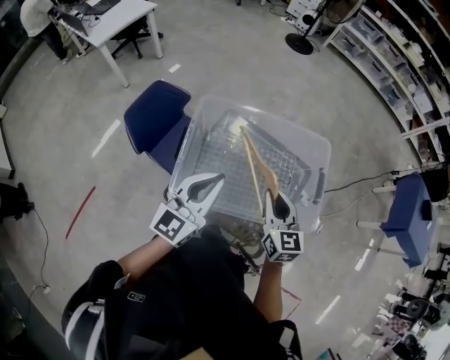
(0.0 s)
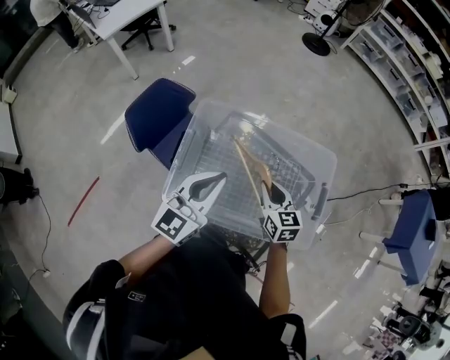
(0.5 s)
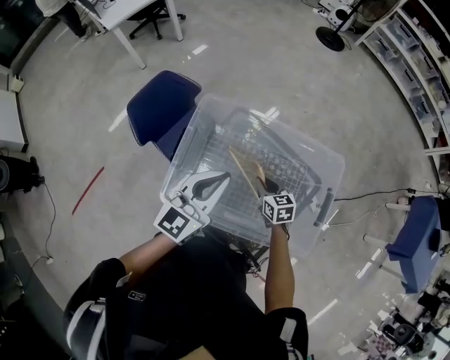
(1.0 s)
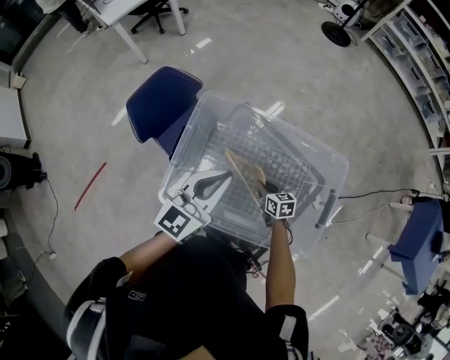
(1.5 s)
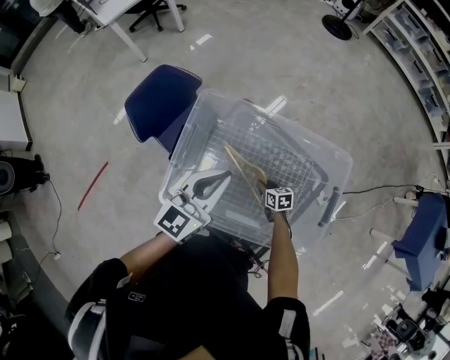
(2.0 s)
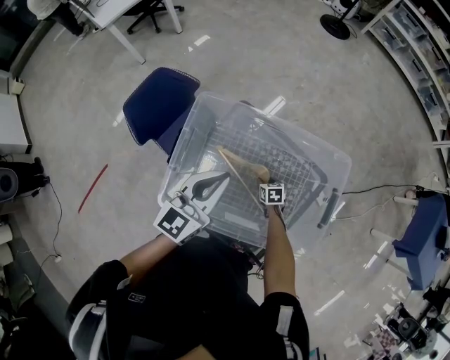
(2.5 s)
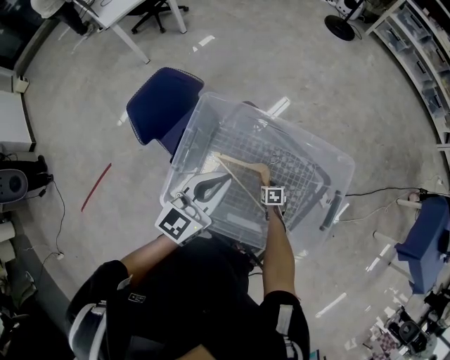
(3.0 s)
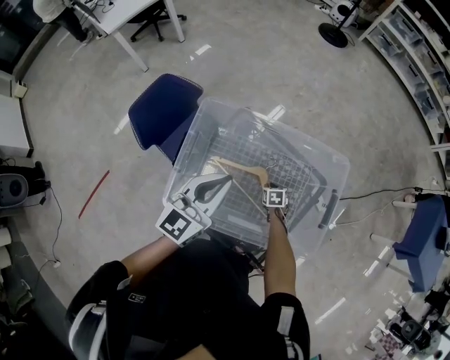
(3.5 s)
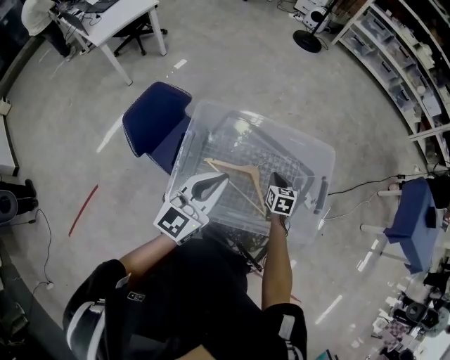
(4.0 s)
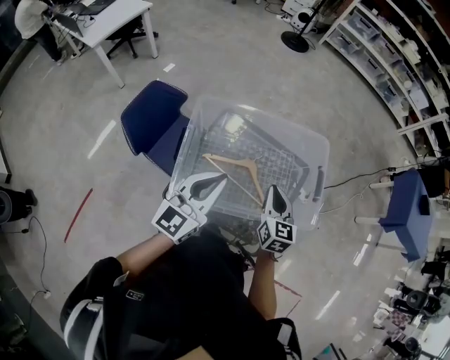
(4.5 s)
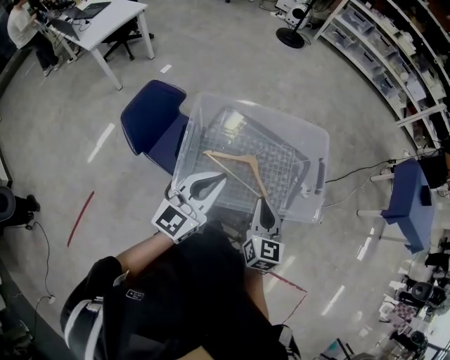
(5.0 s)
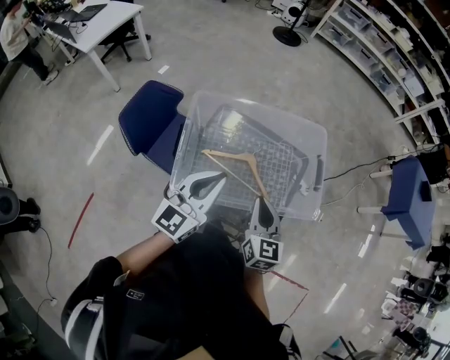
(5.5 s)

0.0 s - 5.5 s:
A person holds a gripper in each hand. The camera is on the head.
0.0 s - 2.0 s: The left gripper moves forward and downward, some 15 cm, while the right gripper shifts some 40 cm downward, and angles its fingers downward, by some 30 degrees.
2.0 s - 3.5 s: The right gripper changes its angle by roughly 20 degrees, and opens, then closes again.
3.5 s - 5.5 s: The left gripper heads backward and upward, covering about 15 cm, while the right gripper shifts some 50 cm upward and backward, and points its fingers approximately 50 degrees further upward.

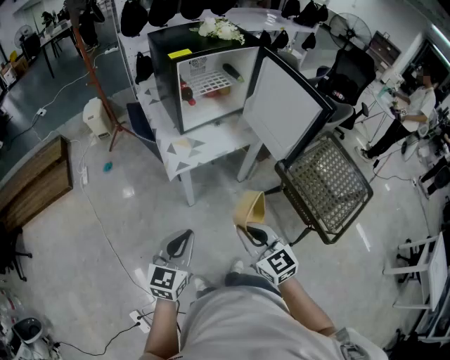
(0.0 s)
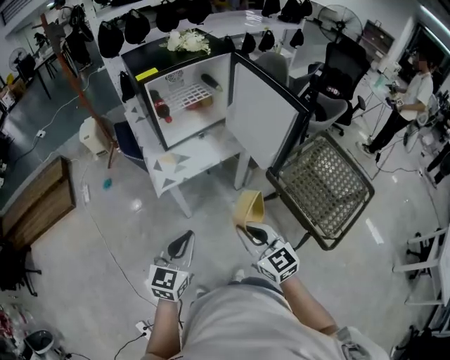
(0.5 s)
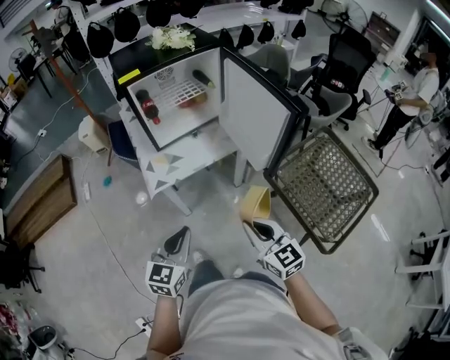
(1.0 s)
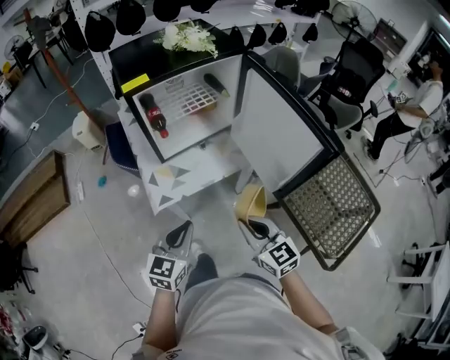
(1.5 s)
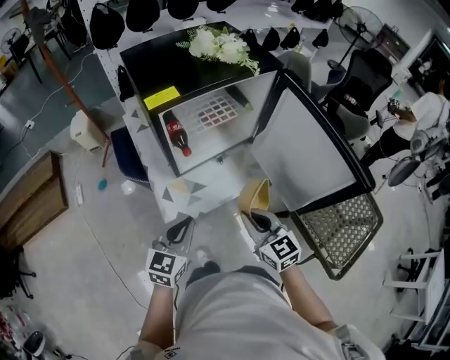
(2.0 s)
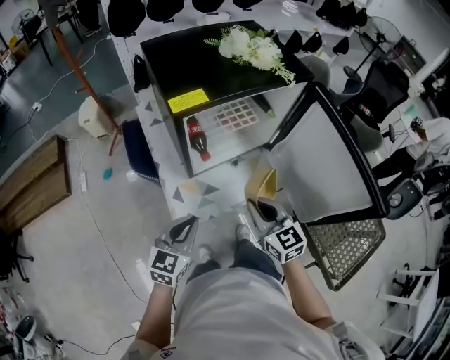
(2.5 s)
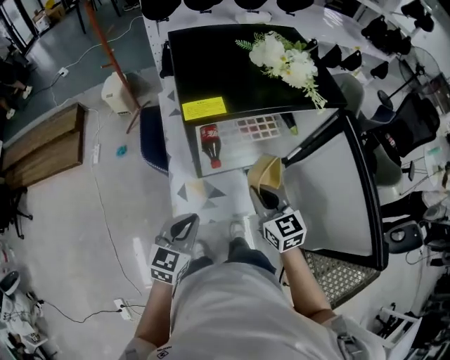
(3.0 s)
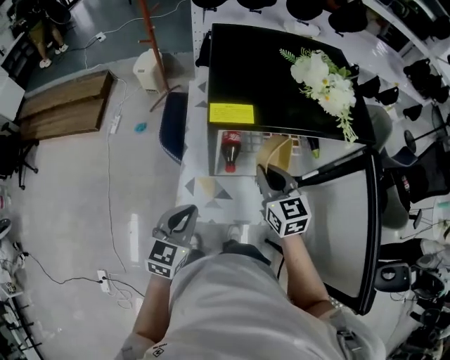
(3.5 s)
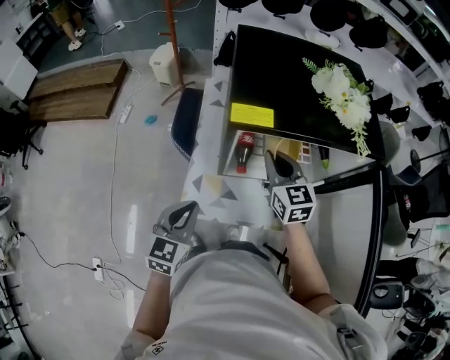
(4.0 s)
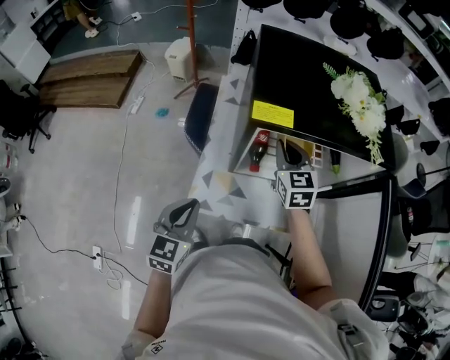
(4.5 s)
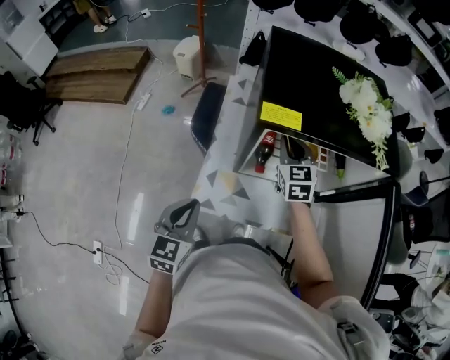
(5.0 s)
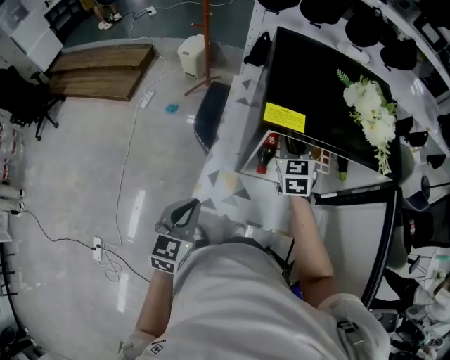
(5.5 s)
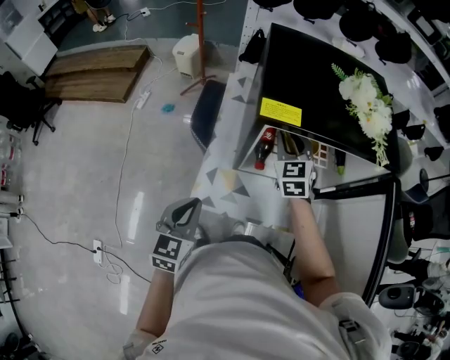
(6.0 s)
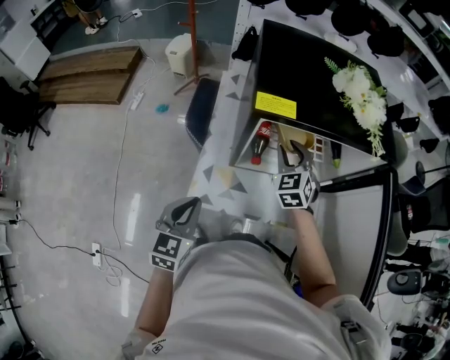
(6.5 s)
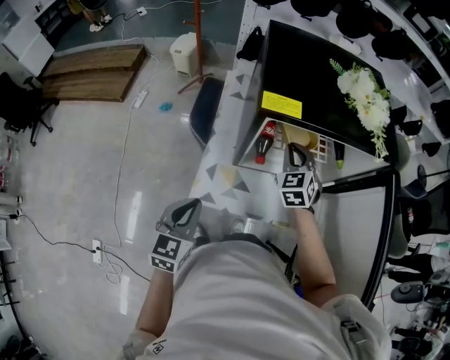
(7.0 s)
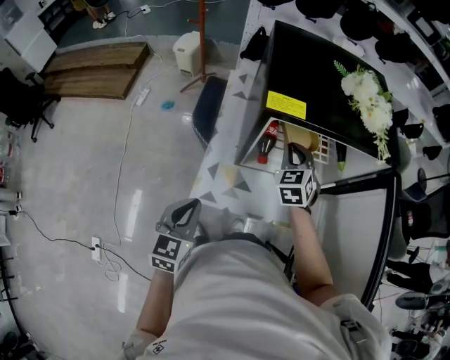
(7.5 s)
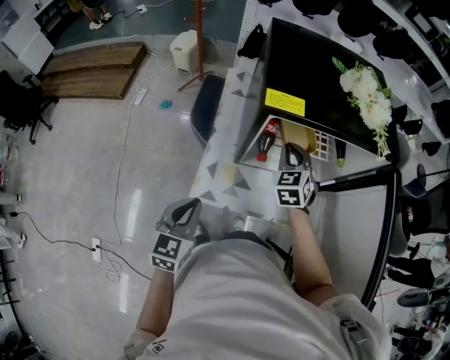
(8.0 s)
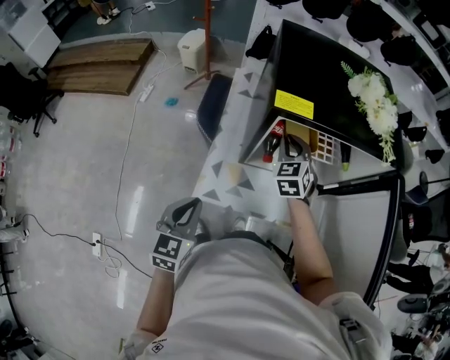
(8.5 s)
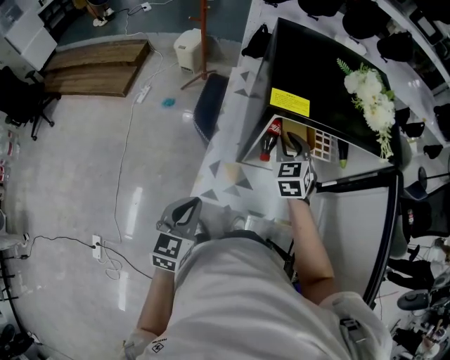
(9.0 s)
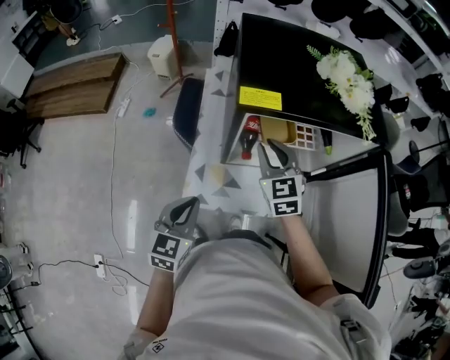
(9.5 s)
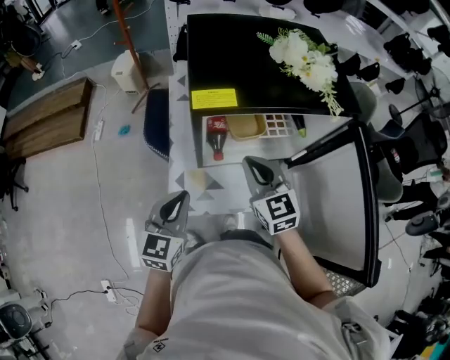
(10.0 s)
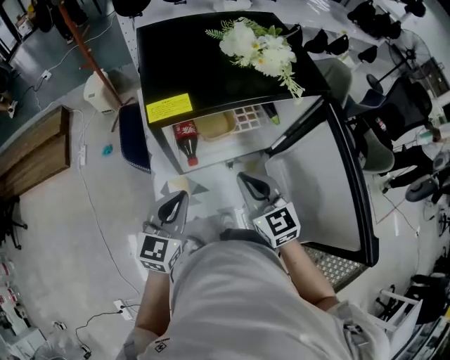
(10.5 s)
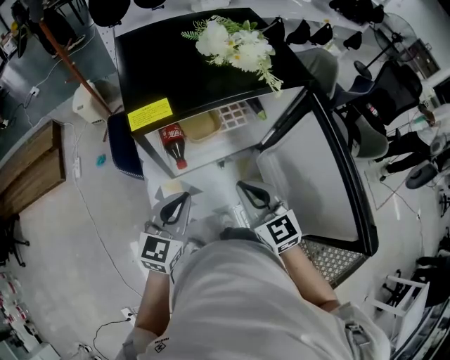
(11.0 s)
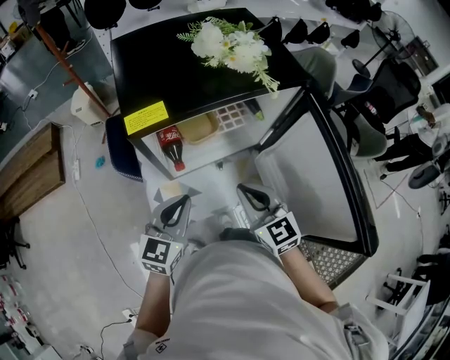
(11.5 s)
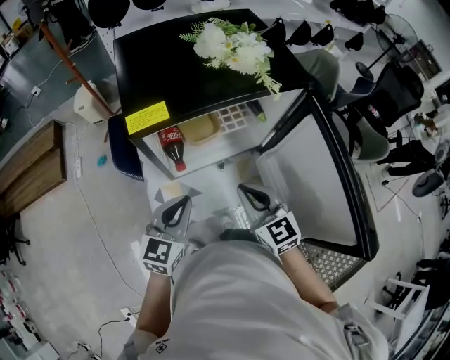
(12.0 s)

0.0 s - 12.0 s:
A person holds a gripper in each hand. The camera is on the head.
0.0 s - 2.0 s: The two grippers go about 30 cm forward.
2.0 s - 4.0 s: The left gripper heads forward, covering some 10 cm, and swivels approximately 30 degrees, while the right gripper goes approximately 30 cm forward.
4.0 s - 6.0 s: The right gripper heads forward, covering about 5 cm, and rotates roughly 20 degrees.
6.0 s - 8.0 s: The right gripper changes place by approximately 5 cm.
8.0 s - 10.0 s: The left gripper goes approximately 5 cm forward. Meanwhile the right gripper shifts some 10 cm backward and upward, and rotates roughly 30 degrees.
10.0 s - 12.0 s: The left gripper is displaced to the right by approximately 10 cm; the right gripper travels to the right and backward by some 10 cm.

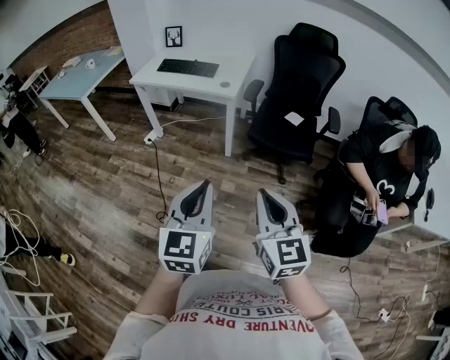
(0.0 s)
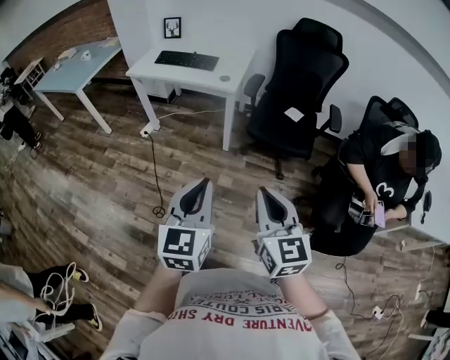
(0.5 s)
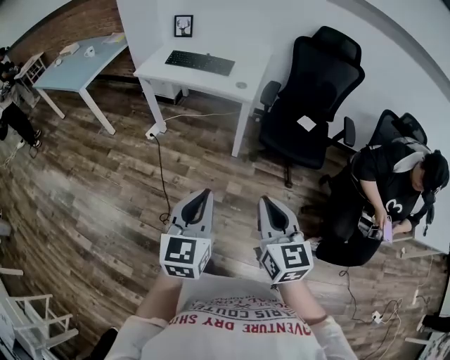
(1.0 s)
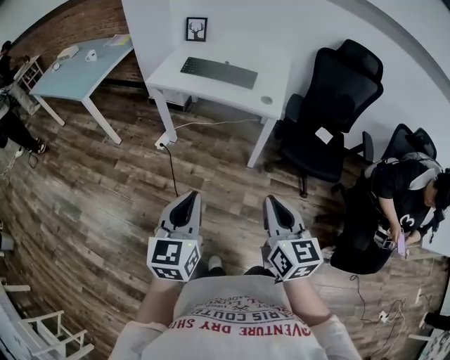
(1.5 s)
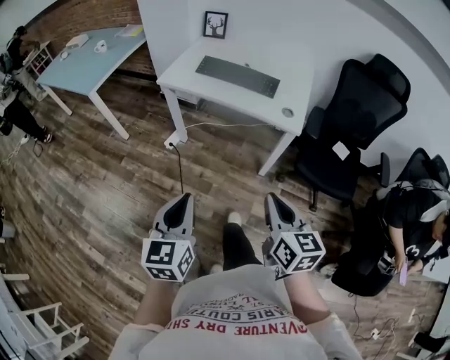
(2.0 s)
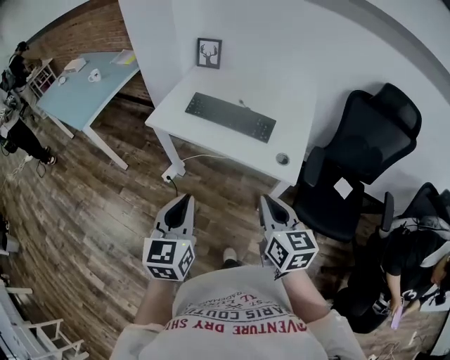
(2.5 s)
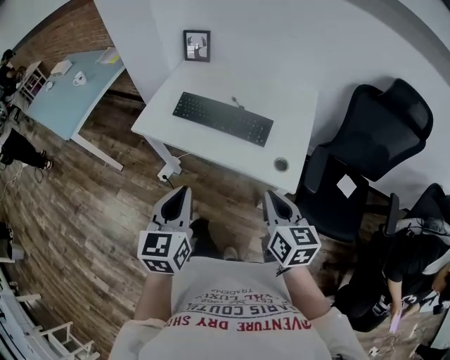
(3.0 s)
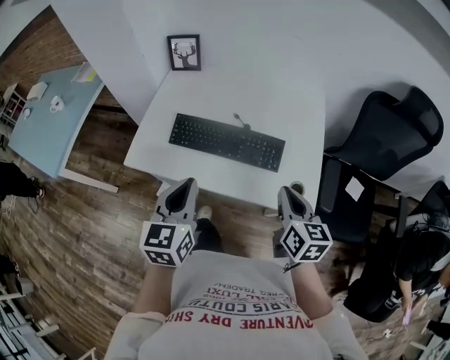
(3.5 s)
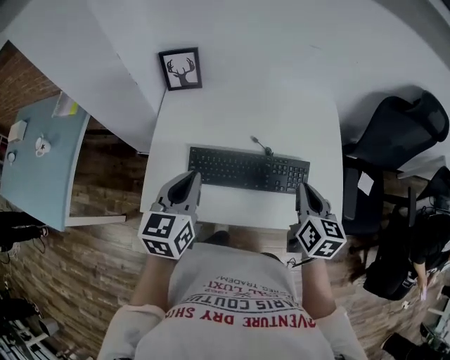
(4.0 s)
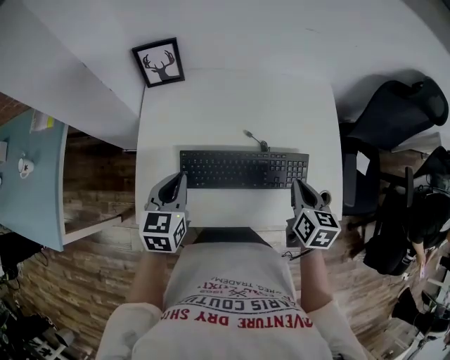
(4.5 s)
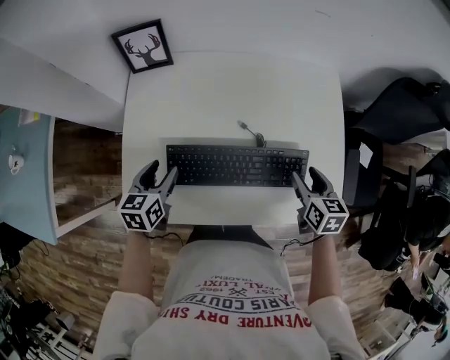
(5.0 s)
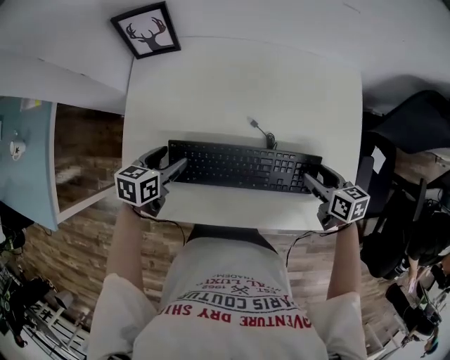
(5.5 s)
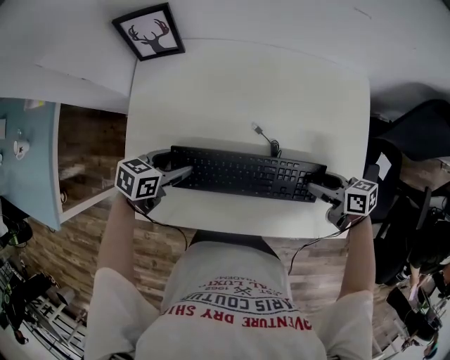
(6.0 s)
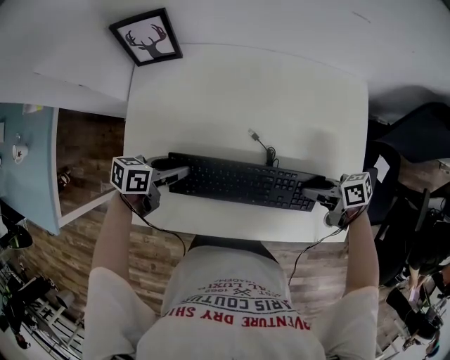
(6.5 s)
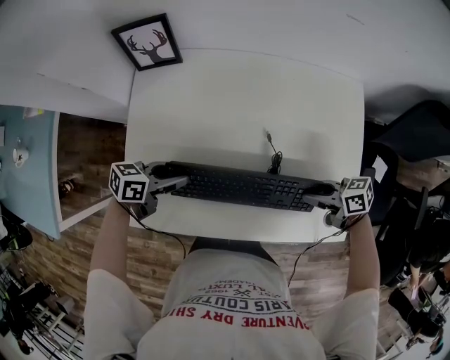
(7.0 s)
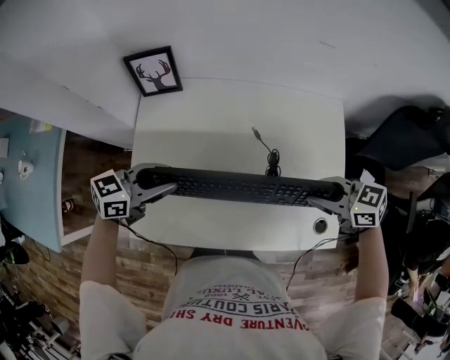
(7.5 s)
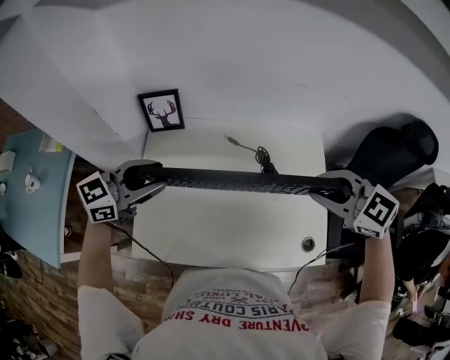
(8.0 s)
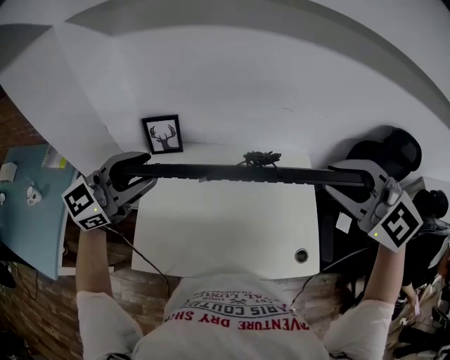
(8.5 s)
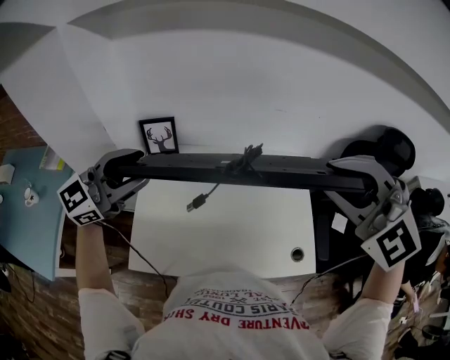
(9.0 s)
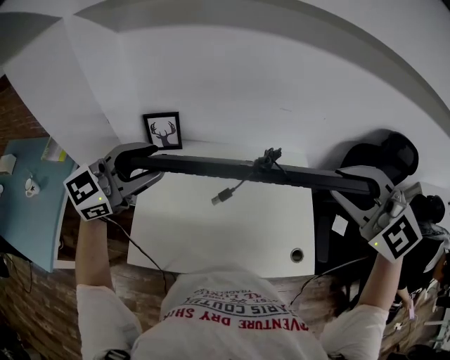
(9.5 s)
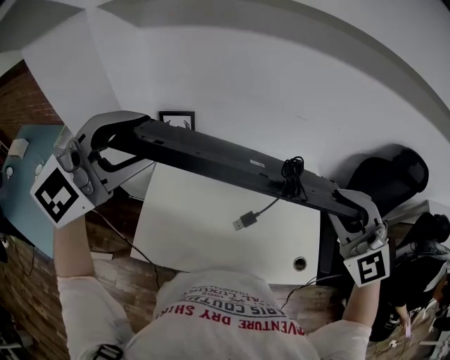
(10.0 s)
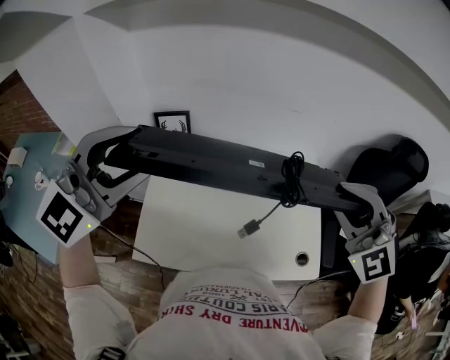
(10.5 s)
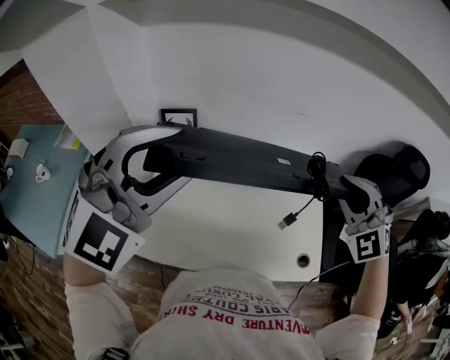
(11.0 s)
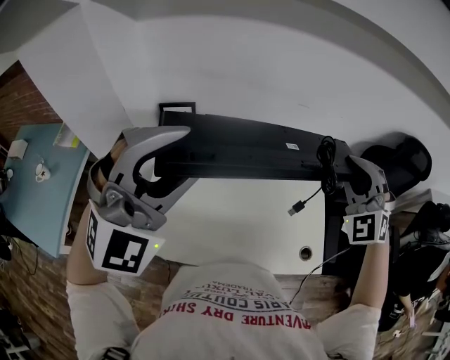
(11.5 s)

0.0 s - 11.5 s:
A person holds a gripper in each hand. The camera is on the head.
0.0 s - 2.0 s: The pair of grippers is taken forward and to the left, roughly 40 cm. The right gripper rotates some 20 degrees.
2.0 s - 4.0 s: Both grippers are carried about 60 cm. The right gripper turns by about 30 degrees. Meanwhile the left gripper swivels approximately 20 degrees.
4.0 s - 6.0 s: The two grippers go roughly 20 cm downward. The right gripper rotates roughly 50 degrees, and opens up, while the left gripper changes its angle by some 50 degrees, and opens its fingers.
6.0 s - 7.5 s: Both grippers move upward, approximately 15 cm. The left gripper rotates some 30 degrees, while the right gripper swivels some 30 degrees, and closes up.
7.5 s - 9.5 s: The two grippers go approximately 30 cm upward. The left gripper swivels approximately 40 degrees. The right gripper rolls counterclockwise, seen from behind, by roughly 60 degrees.
9.5 s - 11.5 s: The left gripper travels upward and to the right by about 10 cm, and rolls clockwise, seen from behind, by approximately 50 degrees. Meanwhile the right gripper heads forward and downward, covering approximately 10 cm, and changes its angle by about 30 degrees.
